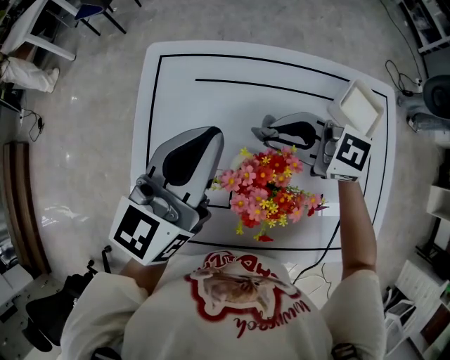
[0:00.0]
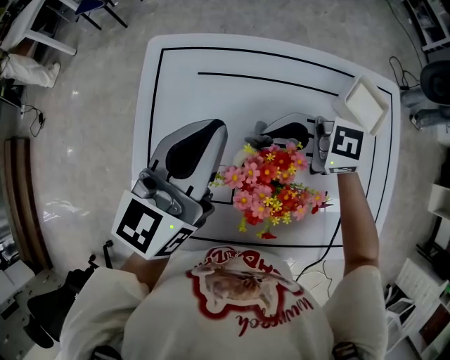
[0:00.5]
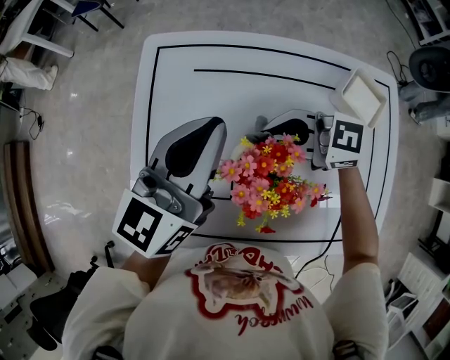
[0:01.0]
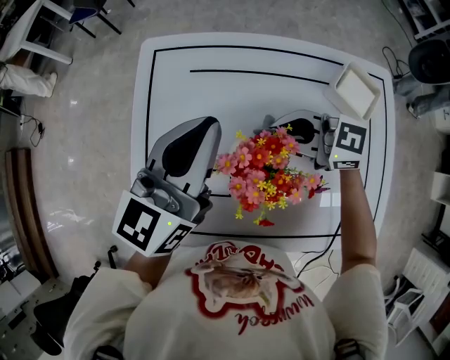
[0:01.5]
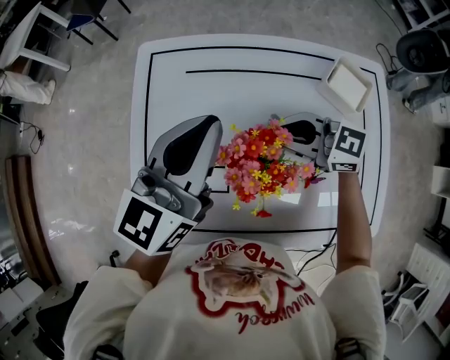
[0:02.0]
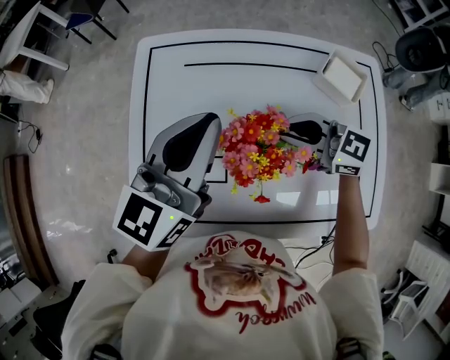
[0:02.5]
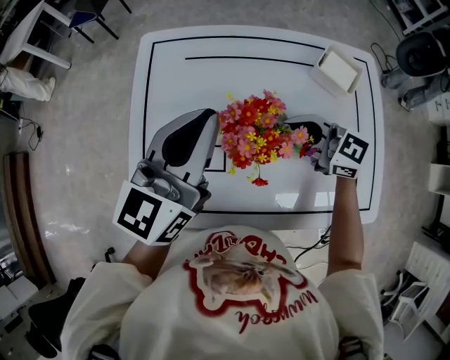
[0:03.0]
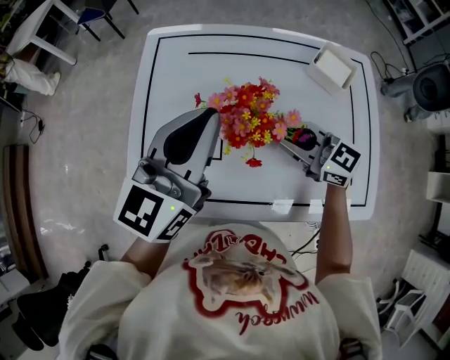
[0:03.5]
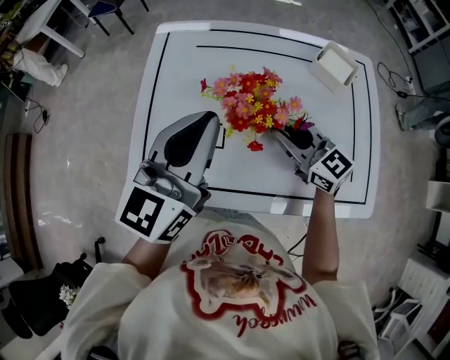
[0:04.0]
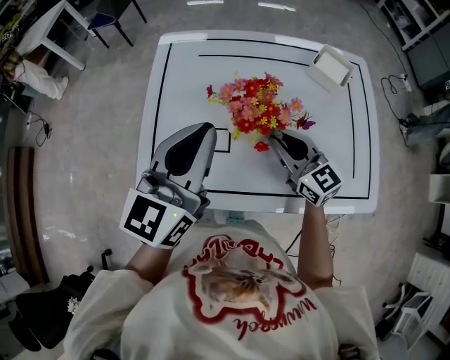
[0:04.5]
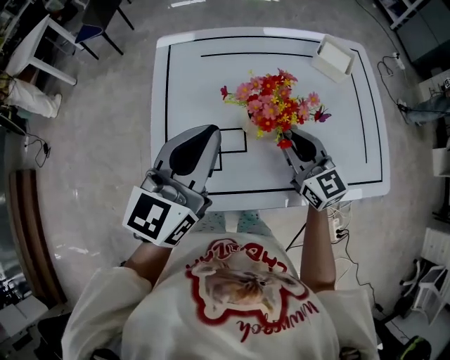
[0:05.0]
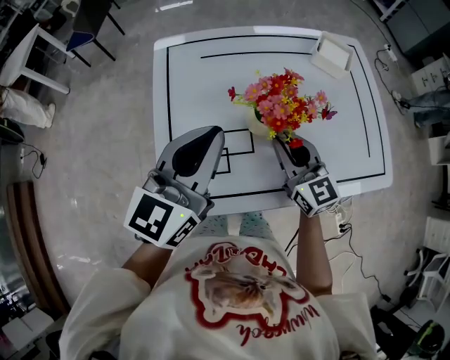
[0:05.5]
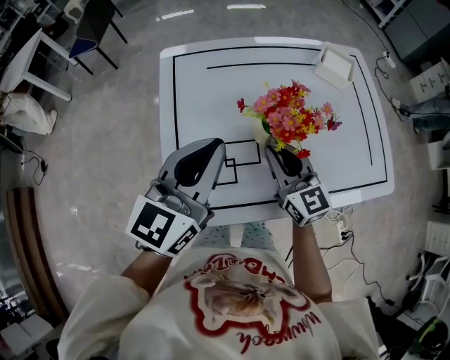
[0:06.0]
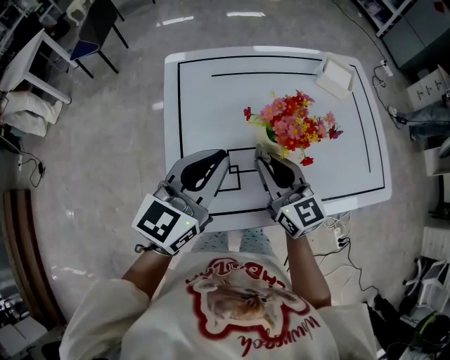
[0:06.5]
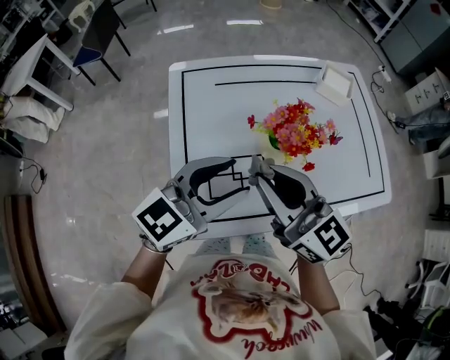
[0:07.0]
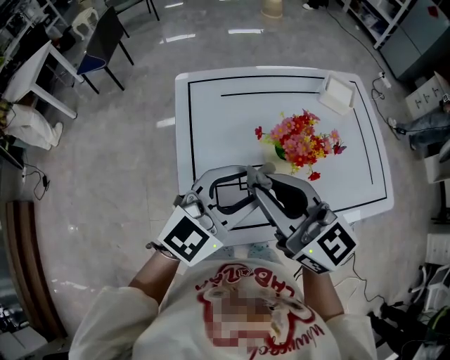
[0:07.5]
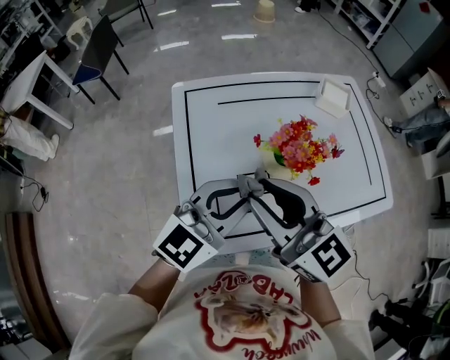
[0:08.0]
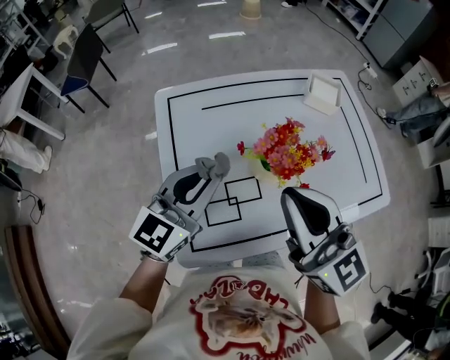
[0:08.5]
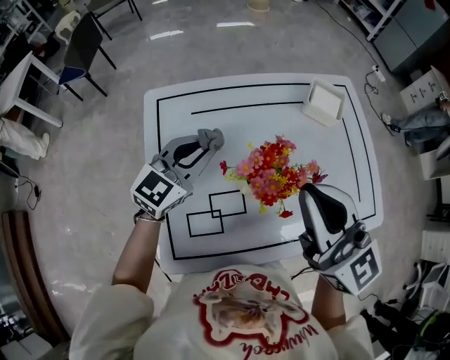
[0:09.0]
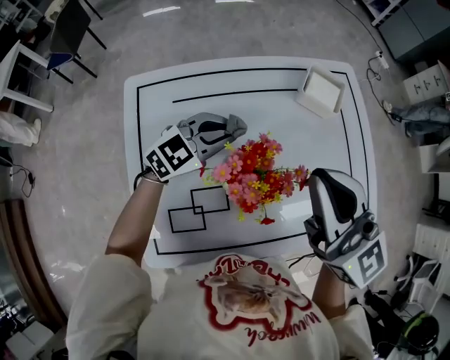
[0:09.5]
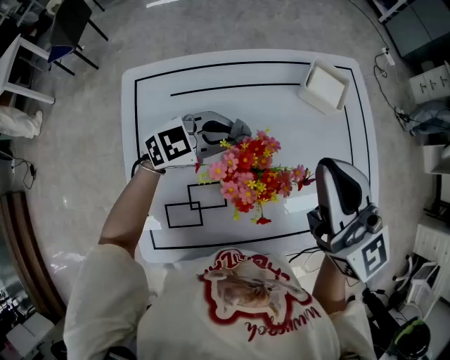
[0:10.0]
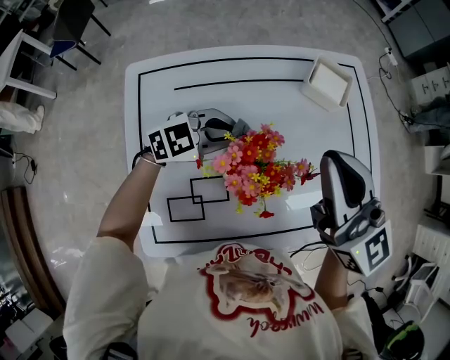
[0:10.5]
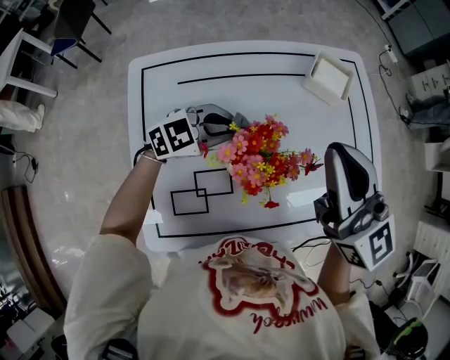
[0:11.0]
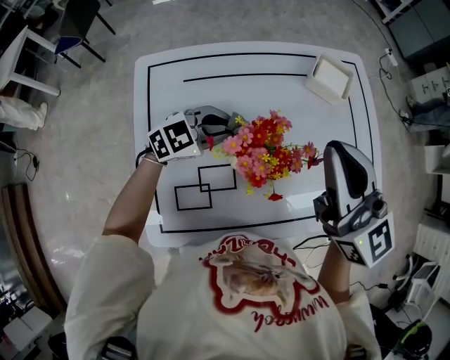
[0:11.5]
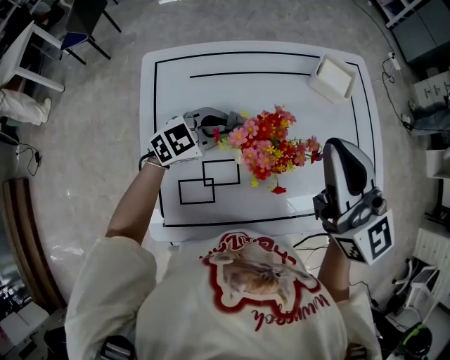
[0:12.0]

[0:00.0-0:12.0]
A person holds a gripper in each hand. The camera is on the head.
0:00.0 to 0:02.0: The right gripper travels backward by roughly 5 cm.
0:02.0 to 0:04.0: The two grippers go roughly 10 cm backward. The right gripper swivels roughly 20 degrees.
0:04.0 to 0:06.0: Both grippers travel together to the left, some 10 cm. The right gripper rotates approximately 30 degrees.
0:06.0 to 0:08.0: The left gripper changes its angle by approximately 30 degrees, and opens, then closes once more, while the right gripper heads upward and to the left, covering approximately 20 cm.
0:08.0 to 0:10.0: The left gripper is displaced forward and downward by roughly 25 cm, and swivels approximately 30 degrees; the right gripper shifts roughly 25 cm forward and to the right.
0:10.0 to 0:12.0: The left gripper shifts by roughly 5 cm.

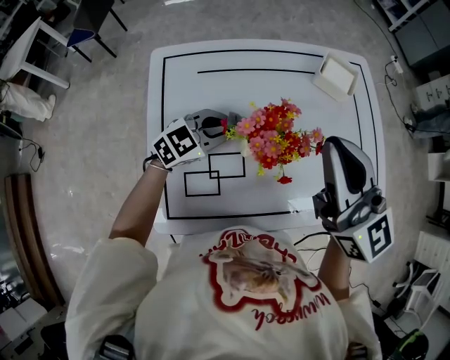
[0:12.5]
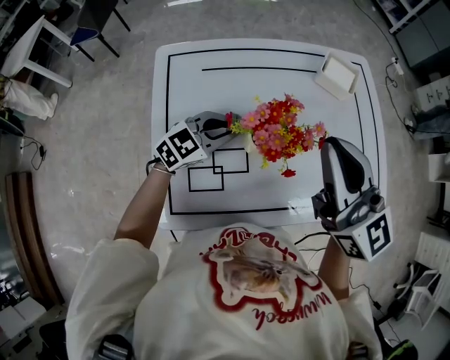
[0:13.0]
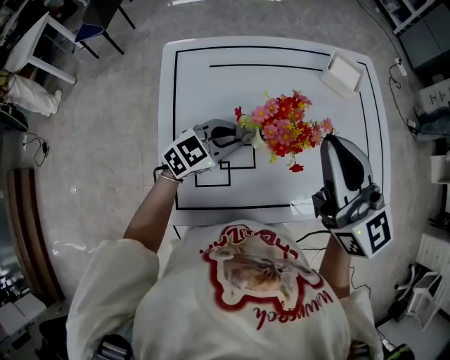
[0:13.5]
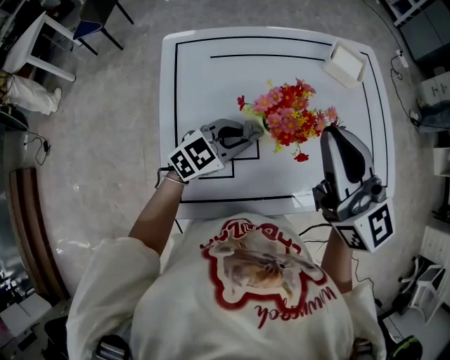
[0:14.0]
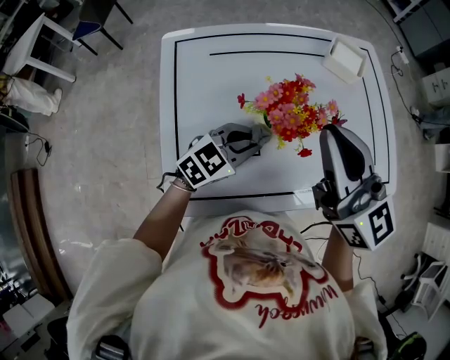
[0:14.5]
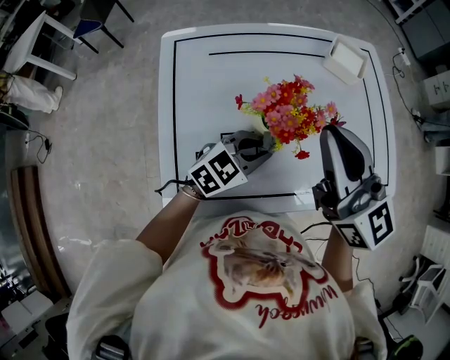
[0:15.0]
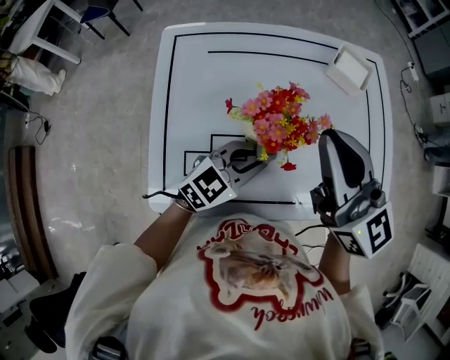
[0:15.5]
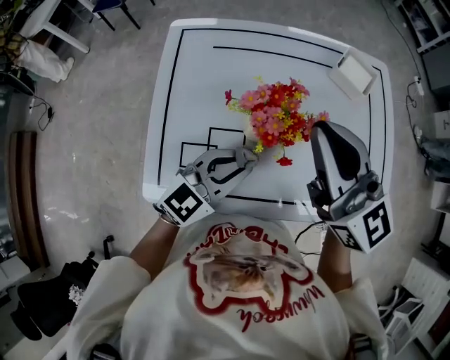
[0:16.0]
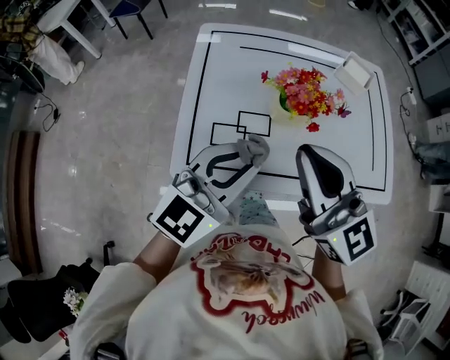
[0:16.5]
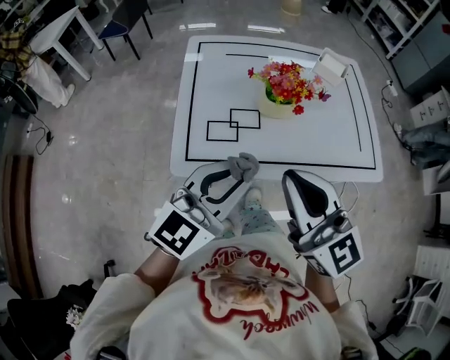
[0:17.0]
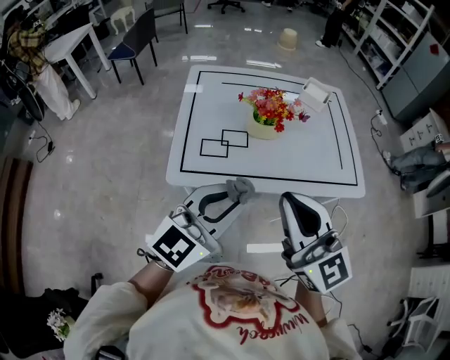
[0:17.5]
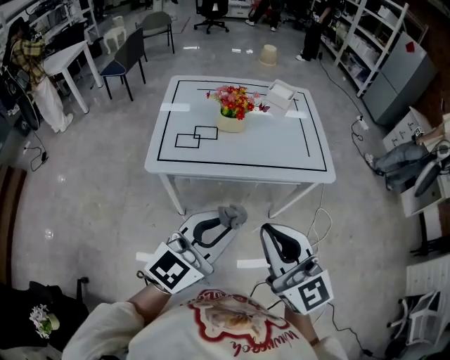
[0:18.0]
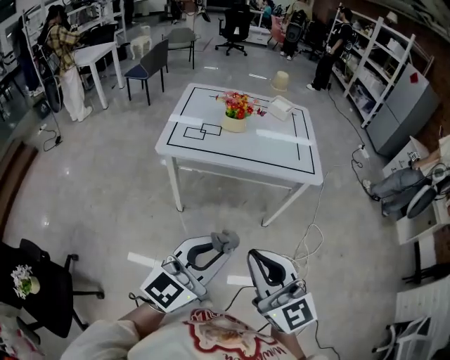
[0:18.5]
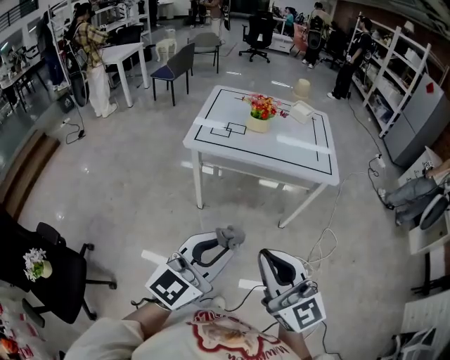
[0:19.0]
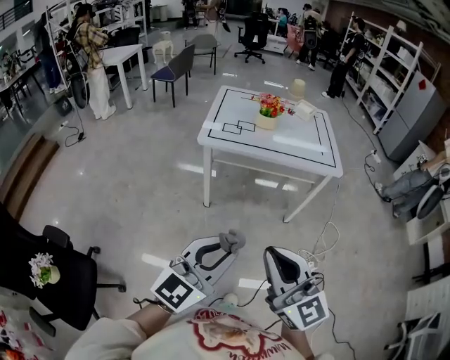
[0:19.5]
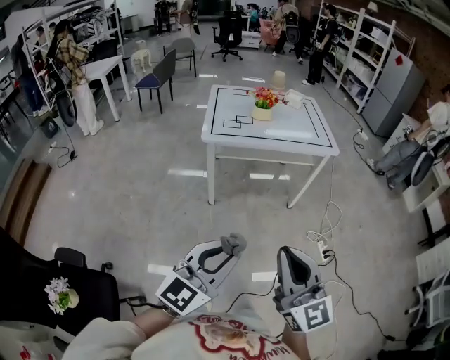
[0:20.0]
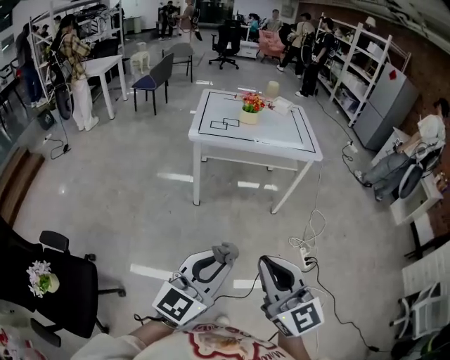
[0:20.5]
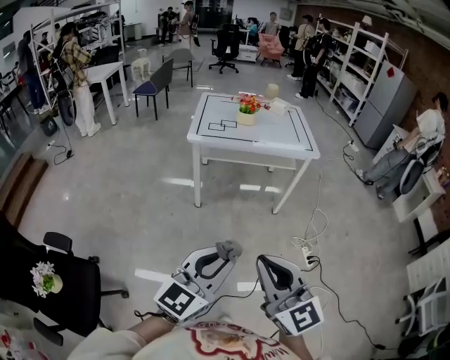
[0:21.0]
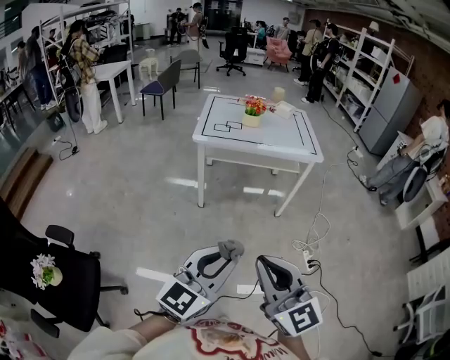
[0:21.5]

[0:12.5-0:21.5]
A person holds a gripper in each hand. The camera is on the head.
0:12.5 to 0:14.5: The left gripper is displaced backward by approximately 10 cm.
0:14.5 to 0:17.0: The left gripper travels backward and upward by about 30 cm, and turns by some 40 degrees; the right gripper shifts about 20 cm backward.
0:17.0 to 0:19.5: The pair of grippers is taken backward, approximately 50 cm.
0:19.5 to 0:21.5: The two grippers go approximately 15 cm backward.

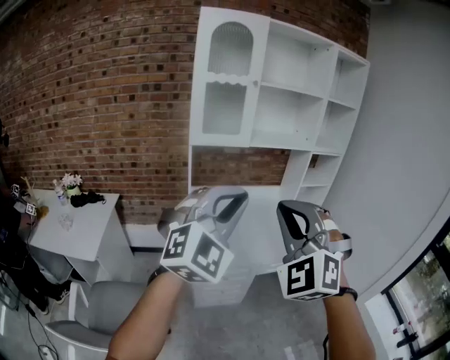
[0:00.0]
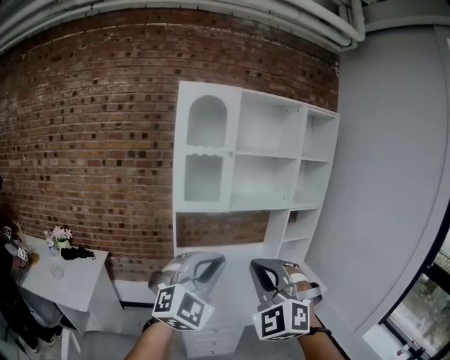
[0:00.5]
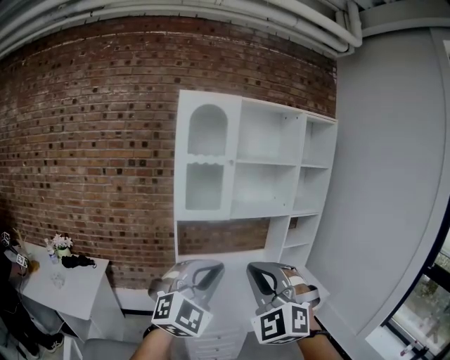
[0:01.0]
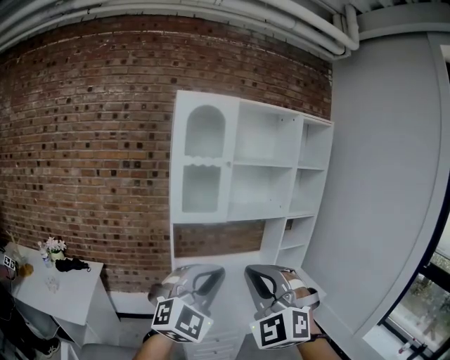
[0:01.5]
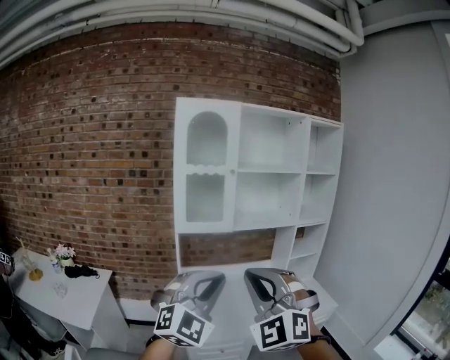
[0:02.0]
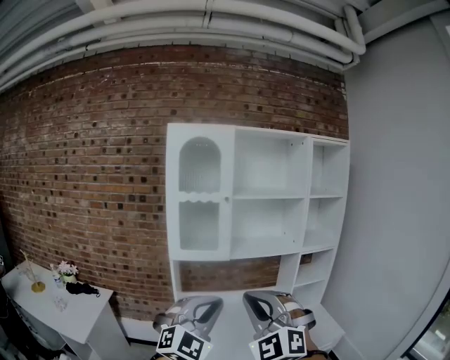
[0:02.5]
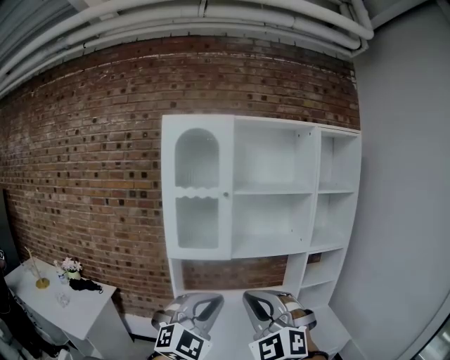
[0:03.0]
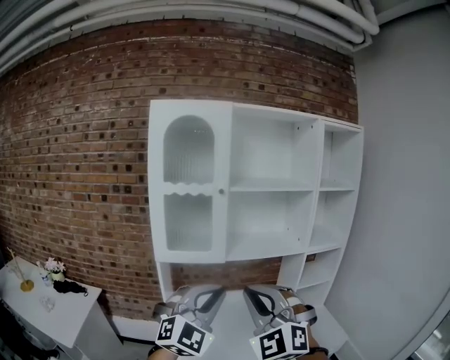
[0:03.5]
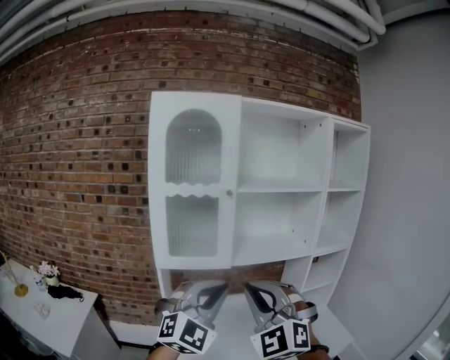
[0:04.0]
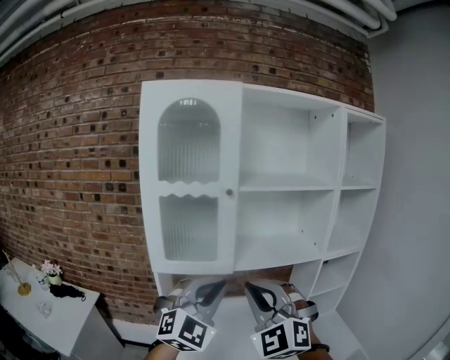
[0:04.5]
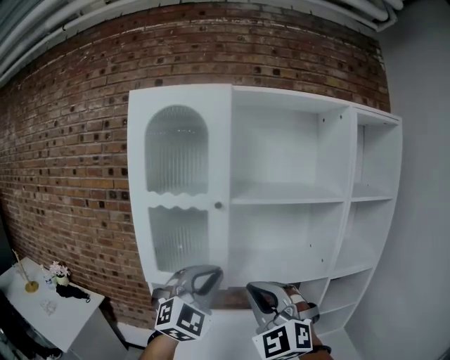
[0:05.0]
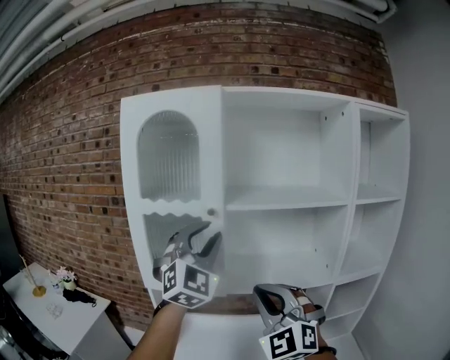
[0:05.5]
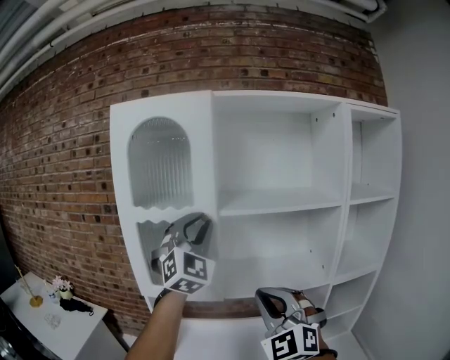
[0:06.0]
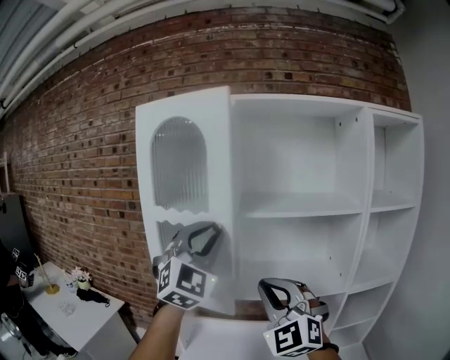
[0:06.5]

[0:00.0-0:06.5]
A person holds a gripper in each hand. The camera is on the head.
0:00.0 to 0:02.0: The right gripper travels upward by about 5 cm.
0:02.0 to 0:04.5: The grippers both shift forward by some 35 cm.
0:04.5 to 0:06.5: The left gripper heads upward and forward, covering some 20 cm, and swivels about 20 degrees. Meanwhile the right gripper goes about 15 cm forward and to the right.
